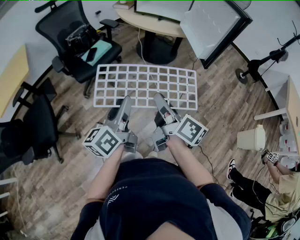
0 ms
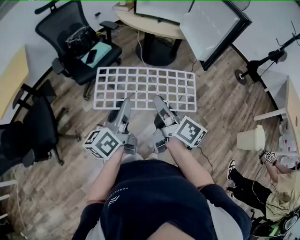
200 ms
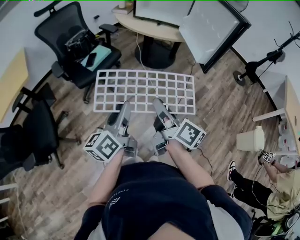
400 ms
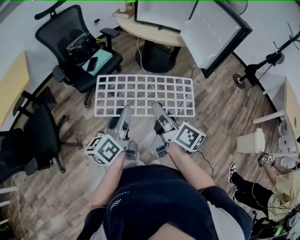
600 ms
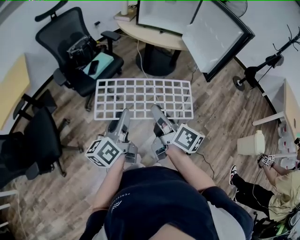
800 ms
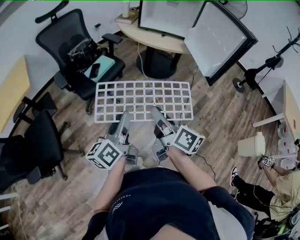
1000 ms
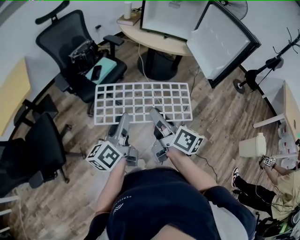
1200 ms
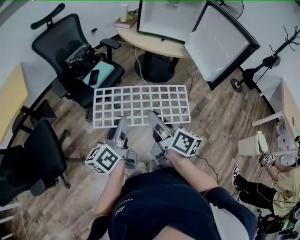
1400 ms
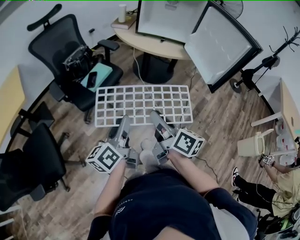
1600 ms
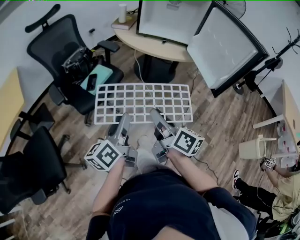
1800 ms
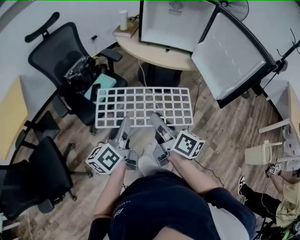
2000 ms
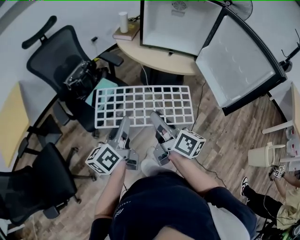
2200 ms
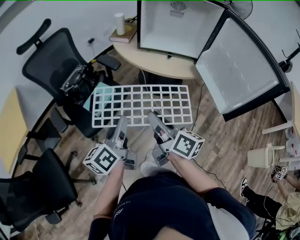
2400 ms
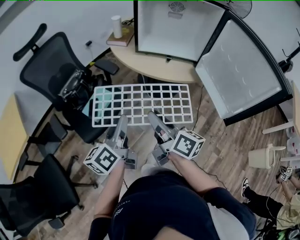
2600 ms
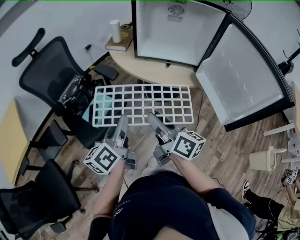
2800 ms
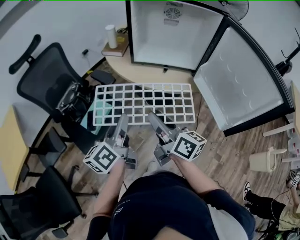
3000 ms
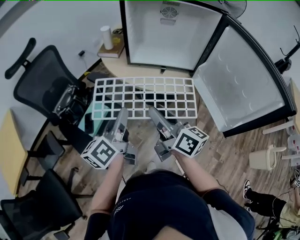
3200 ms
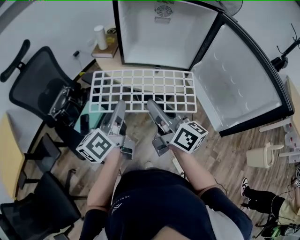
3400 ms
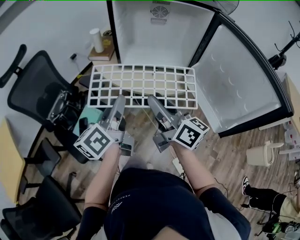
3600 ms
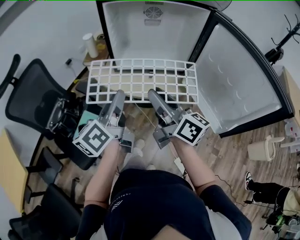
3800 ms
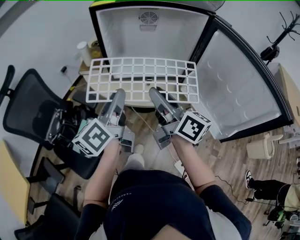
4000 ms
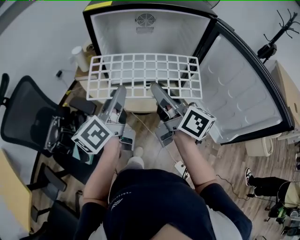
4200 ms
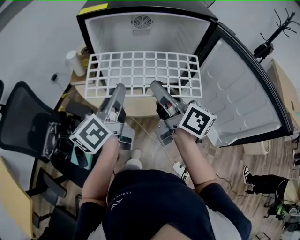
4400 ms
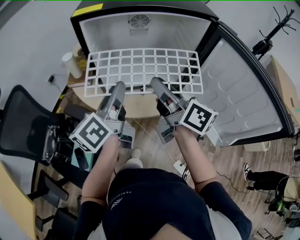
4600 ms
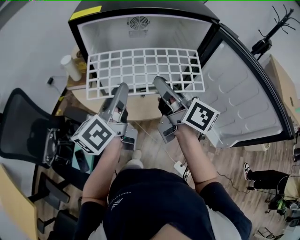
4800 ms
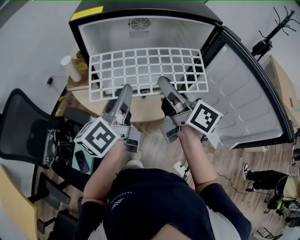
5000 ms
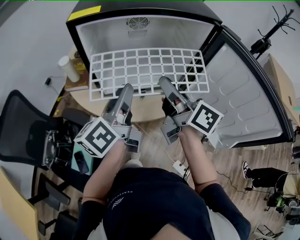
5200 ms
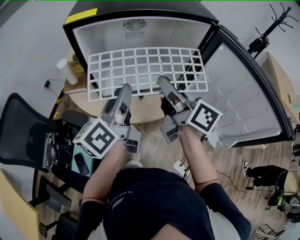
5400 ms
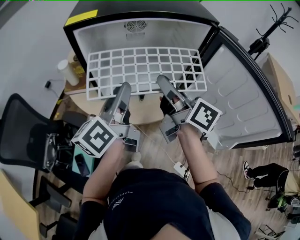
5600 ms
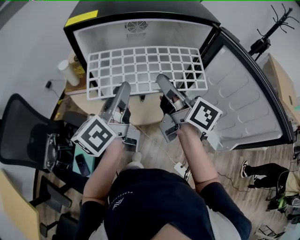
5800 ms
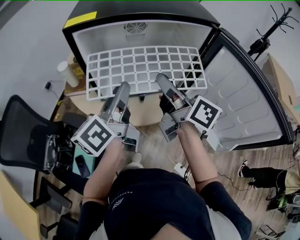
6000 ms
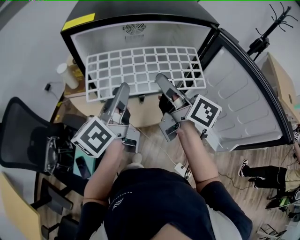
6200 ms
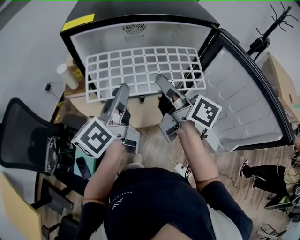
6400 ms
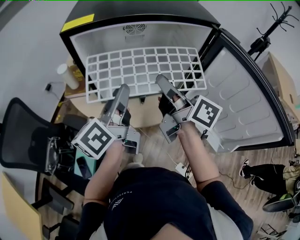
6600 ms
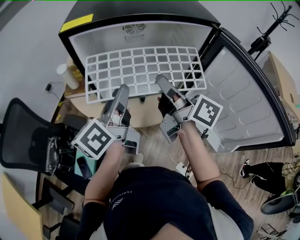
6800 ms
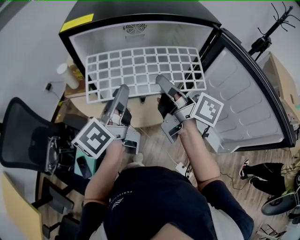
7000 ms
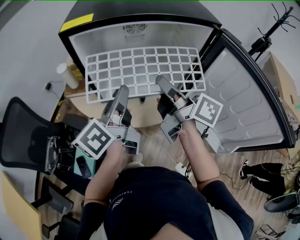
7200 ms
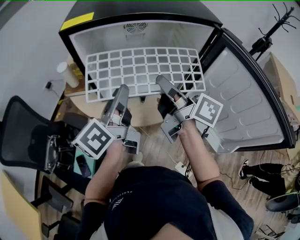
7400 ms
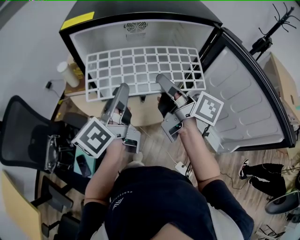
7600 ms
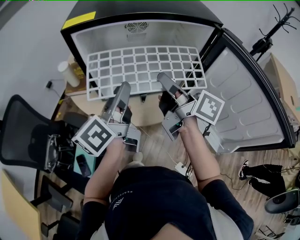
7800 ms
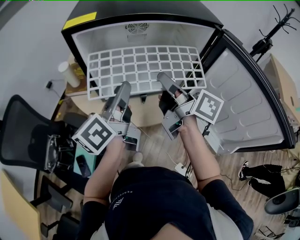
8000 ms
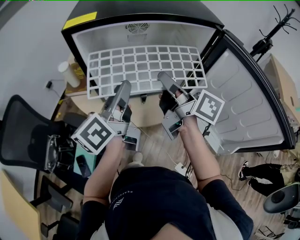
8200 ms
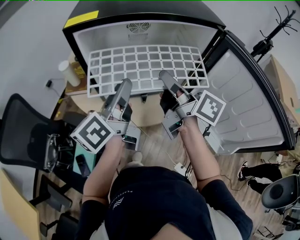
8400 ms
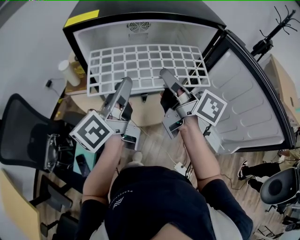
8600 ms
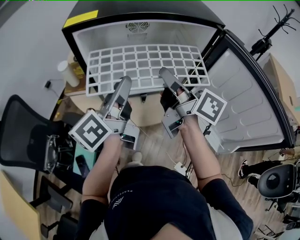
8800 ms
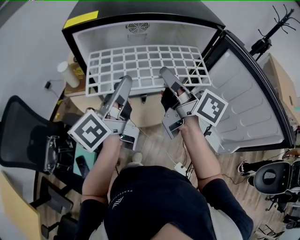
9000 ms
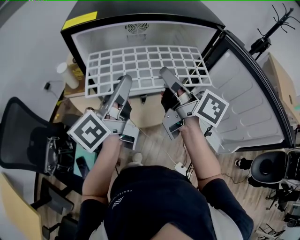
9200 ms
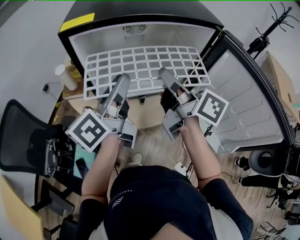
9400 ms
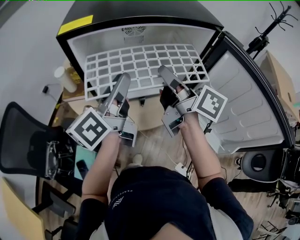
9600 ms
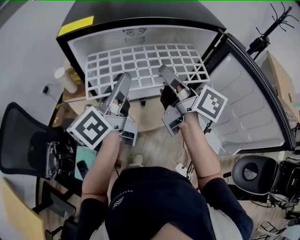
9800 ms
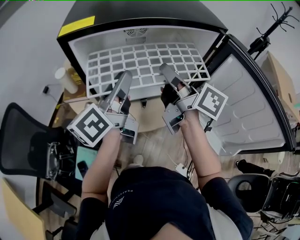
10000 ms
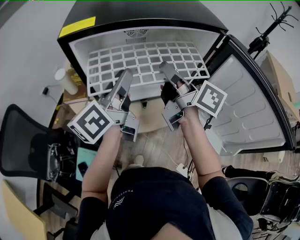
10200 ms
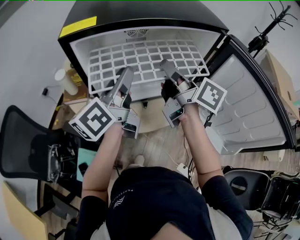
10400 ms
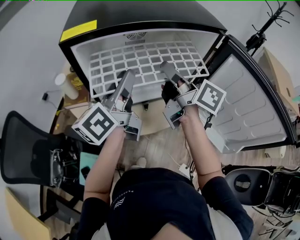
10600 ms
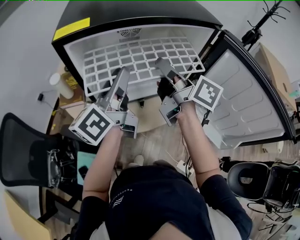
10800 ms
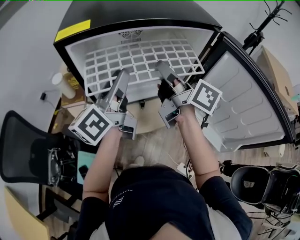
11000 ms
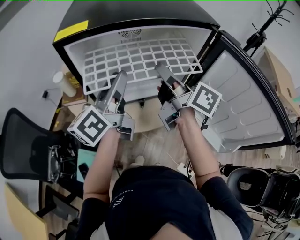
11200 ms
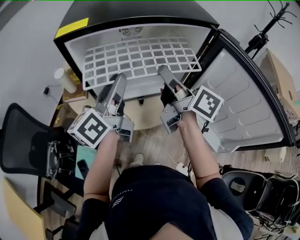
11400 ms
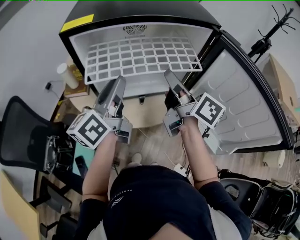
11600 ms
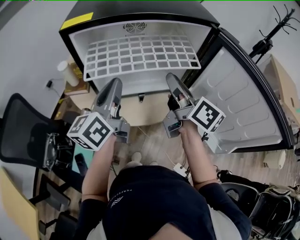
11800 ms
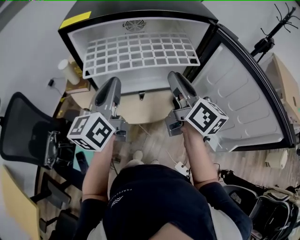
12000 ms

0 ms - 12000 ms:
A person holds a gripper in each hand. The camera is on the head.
0 ms - 1600 ms: The two grippers go approximately 15 cm forward and to the left.
1600 ms - 3000 ms: Both grippers move forward, roughly 30 cm.
3000 ms - 4400 ms: The right gripper heads forward, upward and to the right, covering about 25 cm. Meanwhile the left gripper heads forward, to the right and upward, covering about 25 cm.
4400 ms - 6000 ms: The two grippers go some 5 cm forward.
6000 ms - 9000 ms: The grippers stay close to where they were, moving slightly.
9000 ms - 10400 ms: Both grippers move forward, some 5 cm.
10400 ms - 12000 ms: The right gripper goes roughly 10 cm backward and to the right, and turns by about 20 degrees. Meanwhile the left gripper shifts about 5 cm backward, changes its angle by about 20 degrees, and closes its fingers.

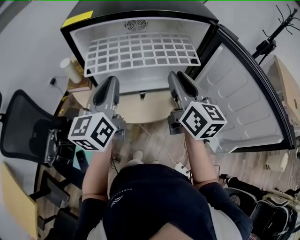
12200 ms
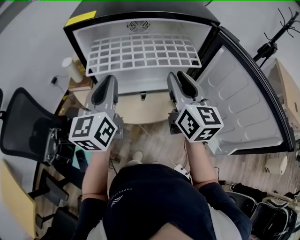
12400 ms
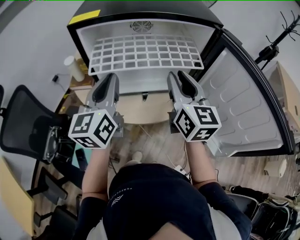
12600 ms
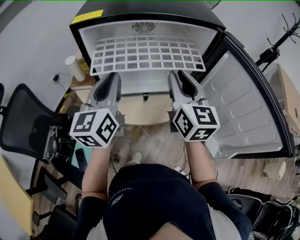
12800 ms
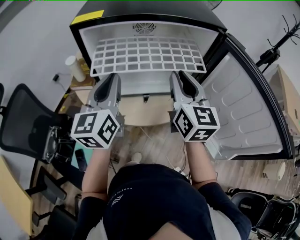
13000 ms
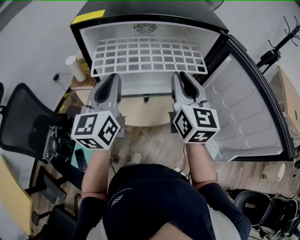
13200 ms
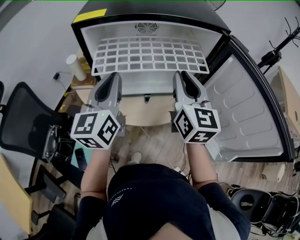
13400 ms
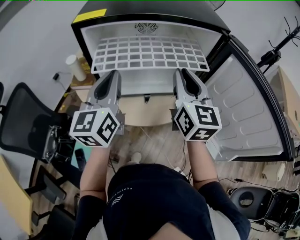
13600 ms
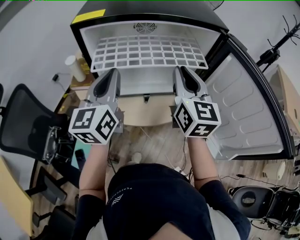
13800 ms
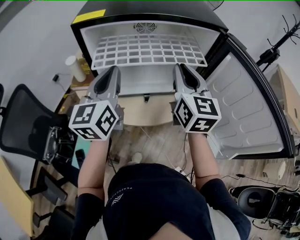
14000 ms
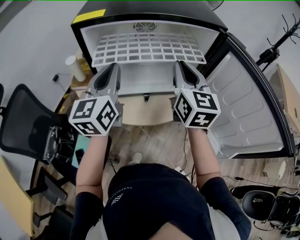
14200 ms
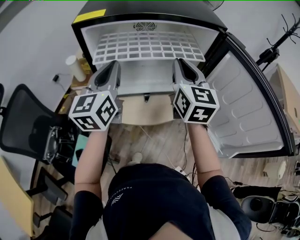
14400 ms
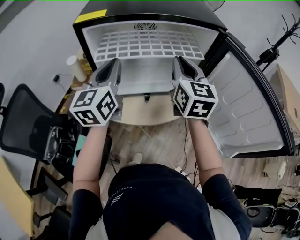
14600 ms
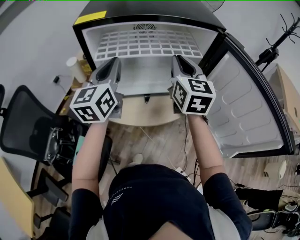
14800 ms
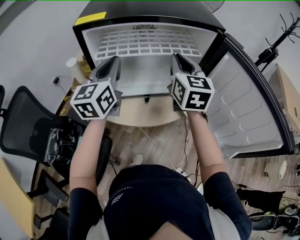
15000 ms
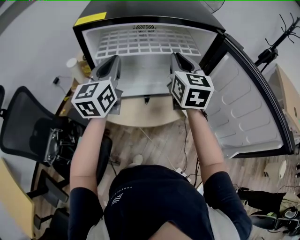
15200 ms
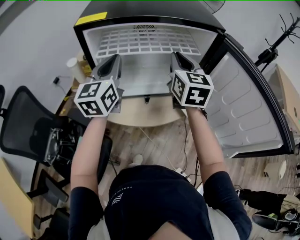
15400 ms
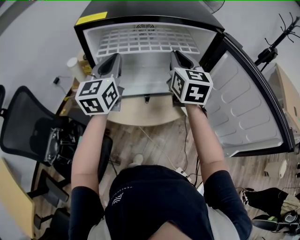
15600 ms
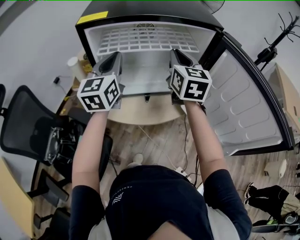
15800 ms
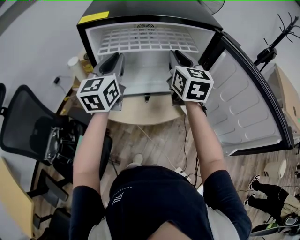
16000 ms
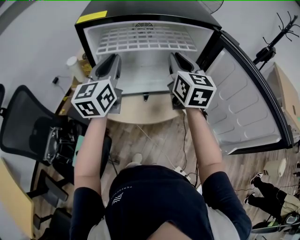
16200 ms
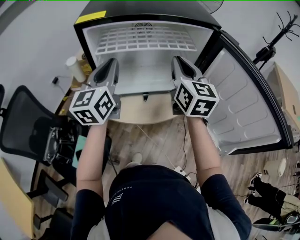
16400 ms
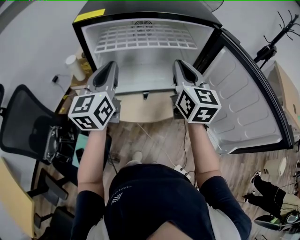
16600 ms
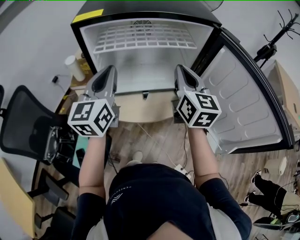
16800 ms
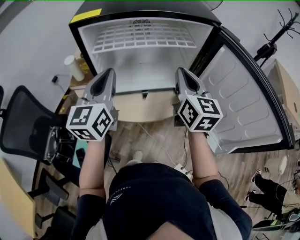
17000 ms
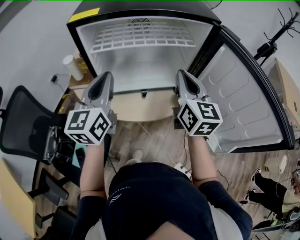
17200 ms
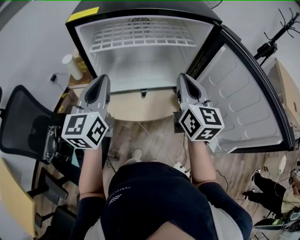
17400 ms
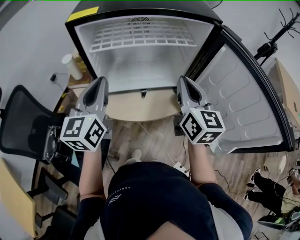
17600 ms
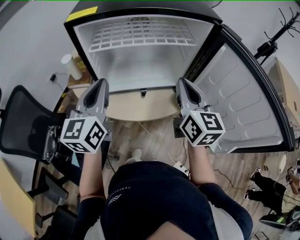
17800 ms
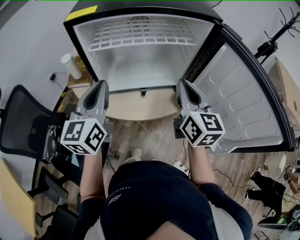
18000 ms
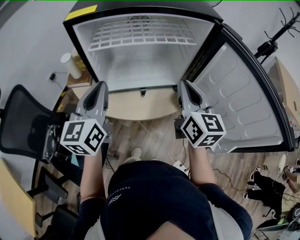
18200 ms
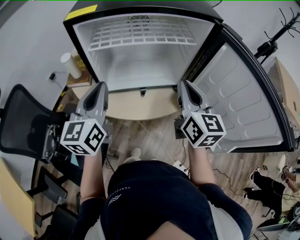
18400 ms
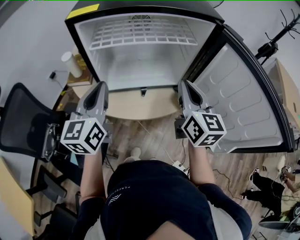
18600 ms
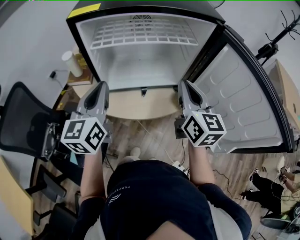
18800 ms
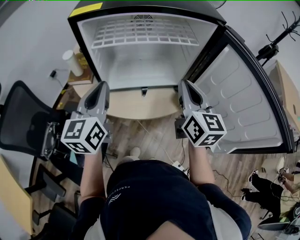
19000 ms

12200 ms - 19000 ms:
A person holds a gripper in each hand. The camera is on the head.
12200 ms - 13600 ms: The grippers make only small movements.
13600 ms - 15000 ms: Both grippers travel together forward, roughly 5 cm.
15000 ms - 16200 ms: The grippers move only a little.
16200 ms - 17600 ms: The grippers both shift backward by about 10 cm.
17600 ms - 19000 ms: There are only small adjustments of the grippers.

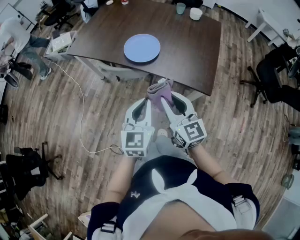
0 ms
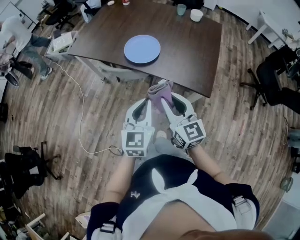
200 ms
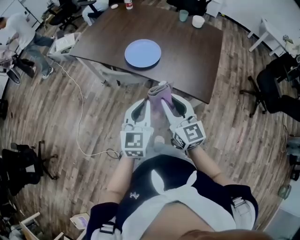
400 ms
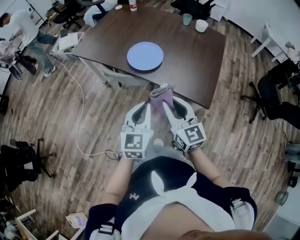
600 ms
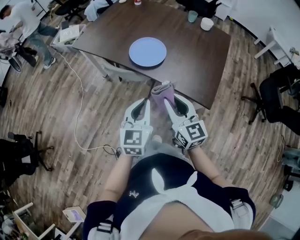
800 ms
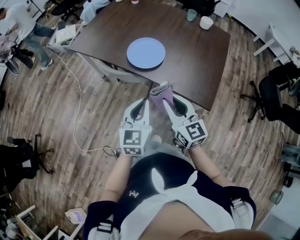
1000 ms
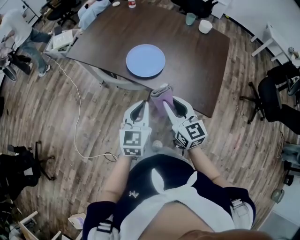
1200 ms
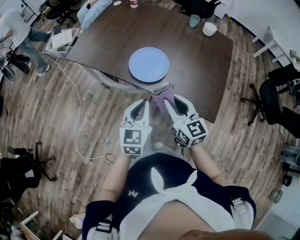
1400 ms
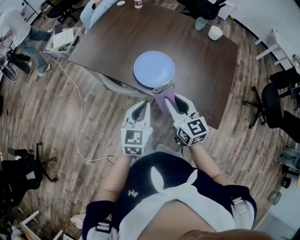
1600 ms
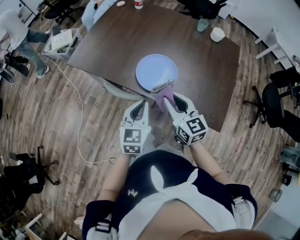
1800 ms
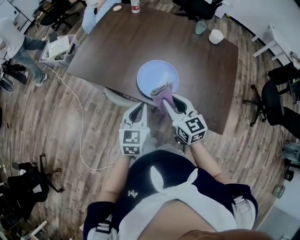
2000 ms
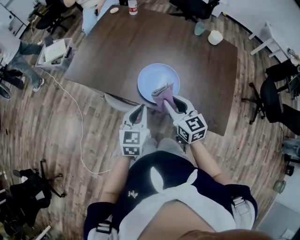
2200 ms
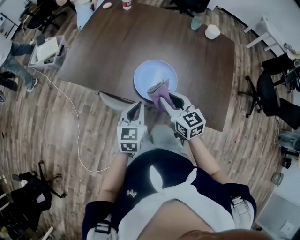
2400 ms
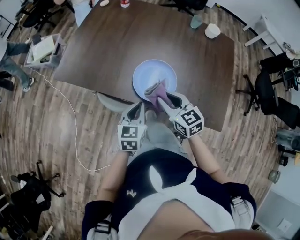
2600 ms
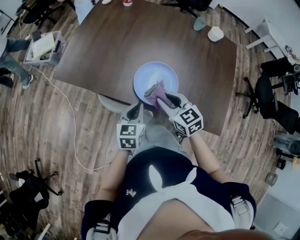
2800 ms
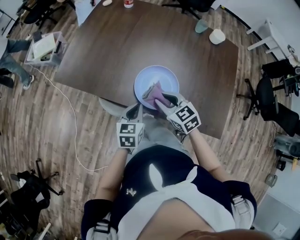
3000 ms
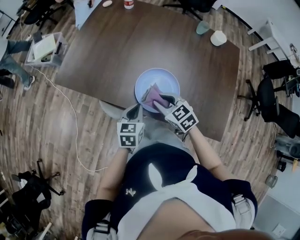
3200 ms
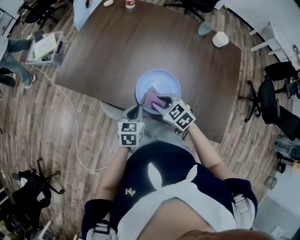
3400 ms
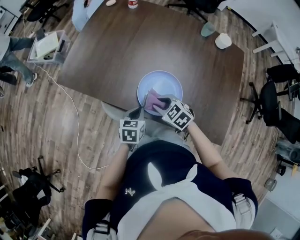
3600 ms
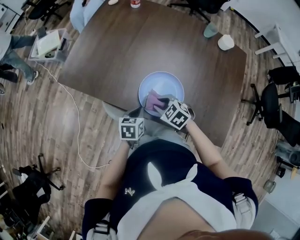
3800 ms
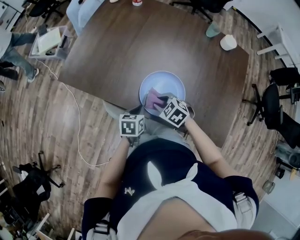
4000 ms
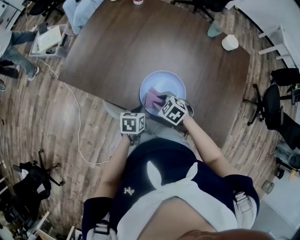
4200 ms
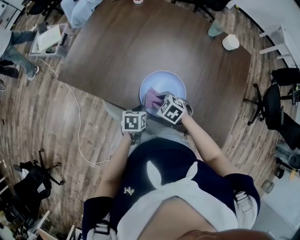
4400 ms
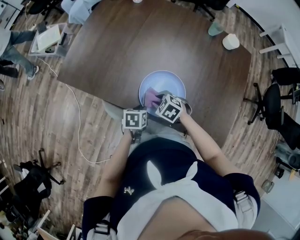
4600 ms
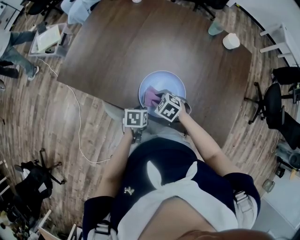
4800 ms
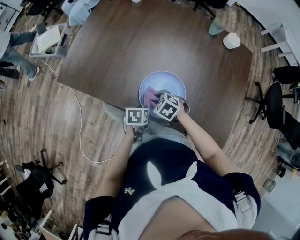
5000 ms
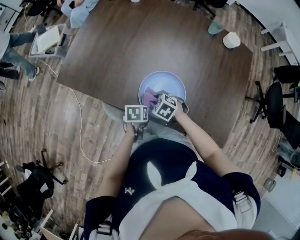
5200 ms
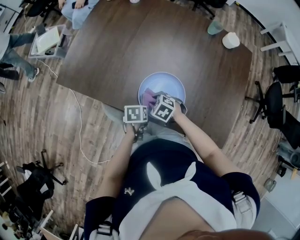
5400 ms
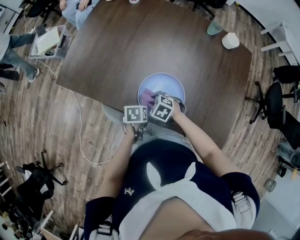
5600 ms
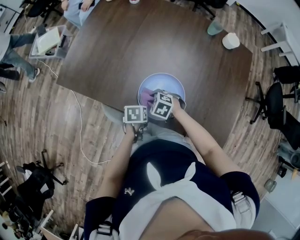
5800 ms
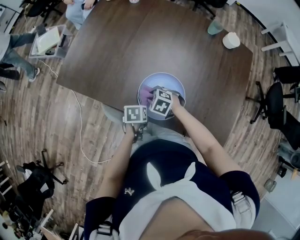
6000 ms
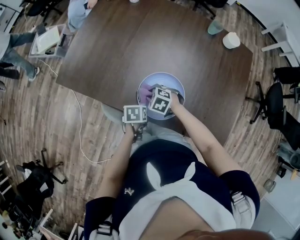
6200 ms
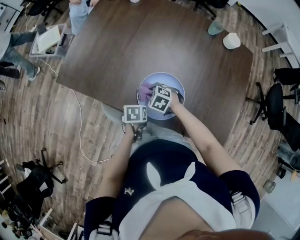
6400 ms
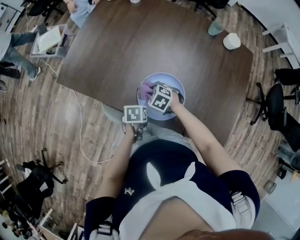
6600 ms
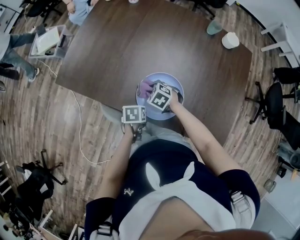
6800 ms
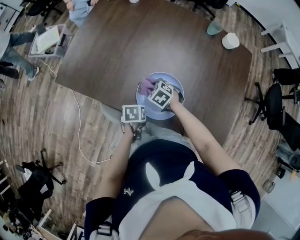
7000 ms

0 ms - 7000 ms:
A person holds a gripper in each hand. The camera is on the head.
0 ms - 1400 ms: Both grippers move forward, some 20 cm.
1400 ms - 2800 ms: The right gripper shifts roughly 20 cm forward, and turns by roughly 20 degrees, while the left gripper shifts roughly 25 cm forward and downward, and turns by roughly 20 degrees.
2800 ms - 4200 ms: The two grippers go about 15 cm downward and forward. The left gripper changes its angle by some 30 degrees, while the right gripper points its fingers approximately 30 degrees further downward.
4200 ms - 5600 ms: The right gripper heads downward, covering approximately 5 cm; the left gripper shifts by roughly 5 cm.
5600 ms - 7000 ms: The right gripper changes place by some 5 cm.
